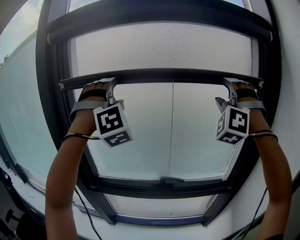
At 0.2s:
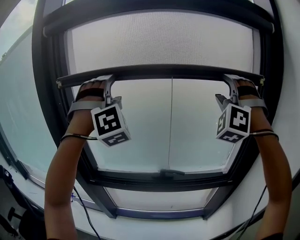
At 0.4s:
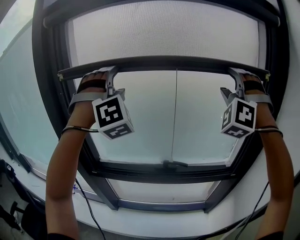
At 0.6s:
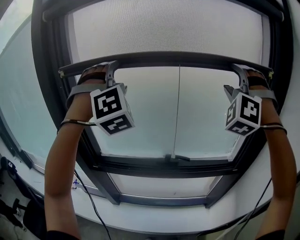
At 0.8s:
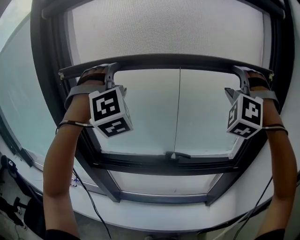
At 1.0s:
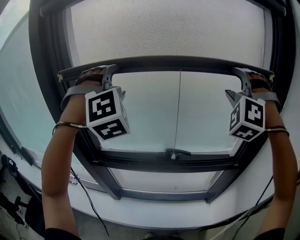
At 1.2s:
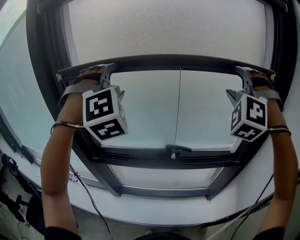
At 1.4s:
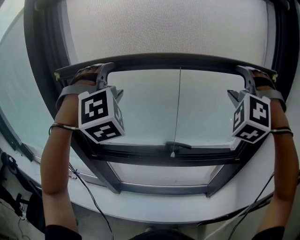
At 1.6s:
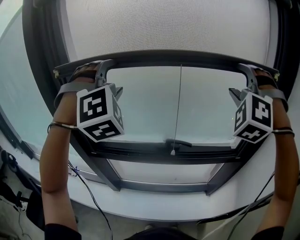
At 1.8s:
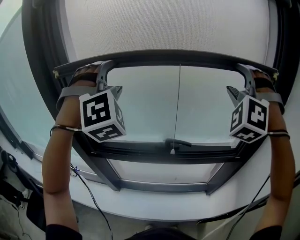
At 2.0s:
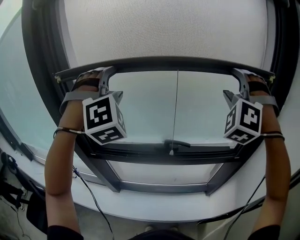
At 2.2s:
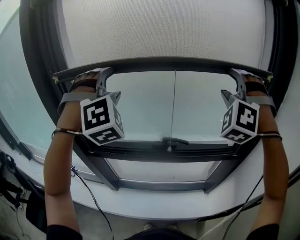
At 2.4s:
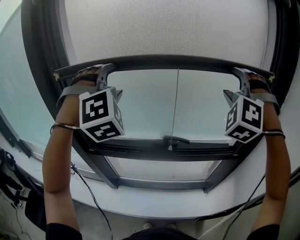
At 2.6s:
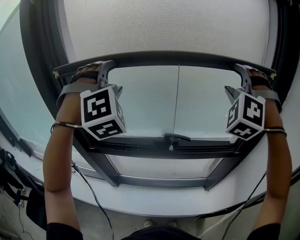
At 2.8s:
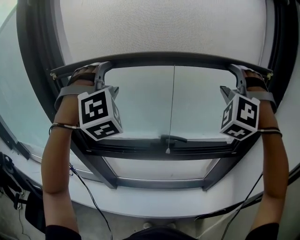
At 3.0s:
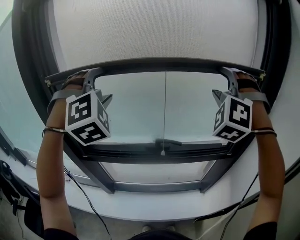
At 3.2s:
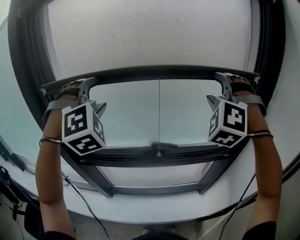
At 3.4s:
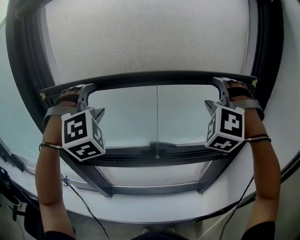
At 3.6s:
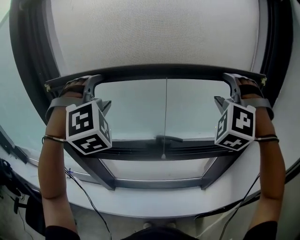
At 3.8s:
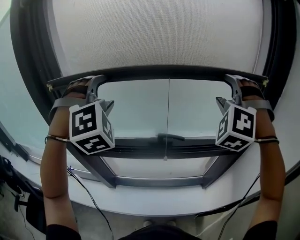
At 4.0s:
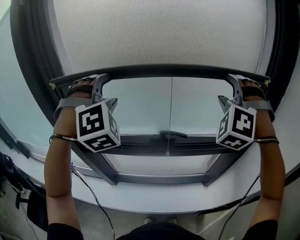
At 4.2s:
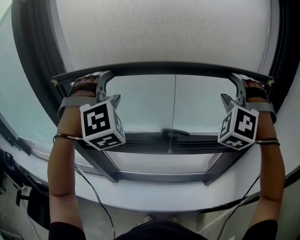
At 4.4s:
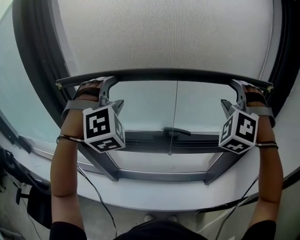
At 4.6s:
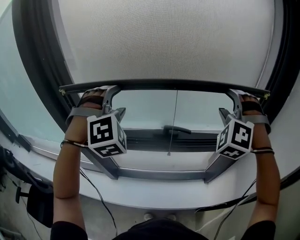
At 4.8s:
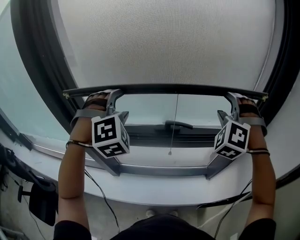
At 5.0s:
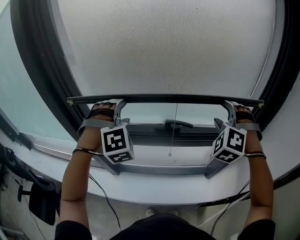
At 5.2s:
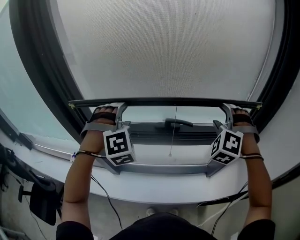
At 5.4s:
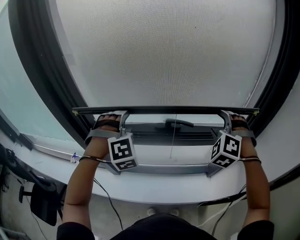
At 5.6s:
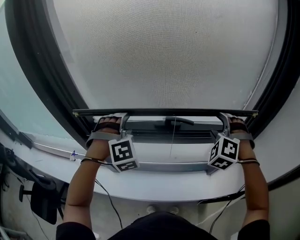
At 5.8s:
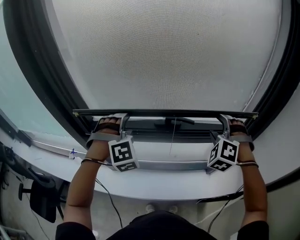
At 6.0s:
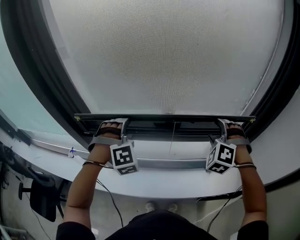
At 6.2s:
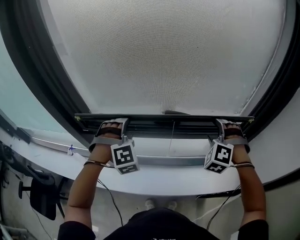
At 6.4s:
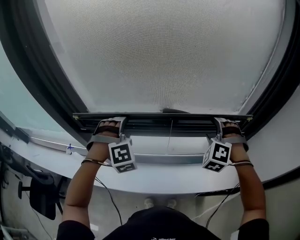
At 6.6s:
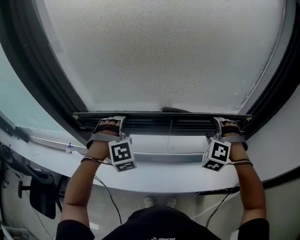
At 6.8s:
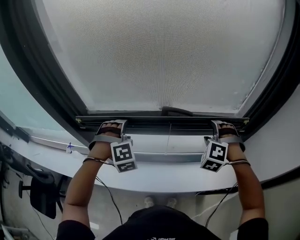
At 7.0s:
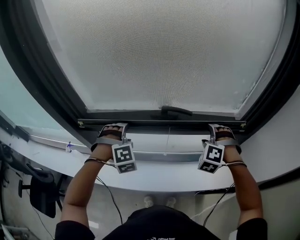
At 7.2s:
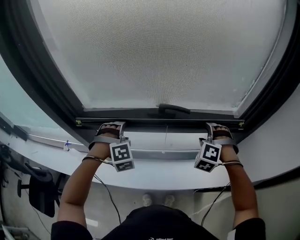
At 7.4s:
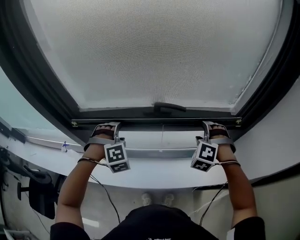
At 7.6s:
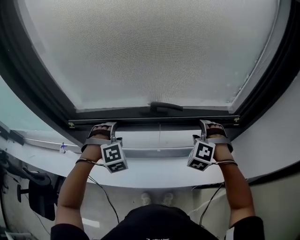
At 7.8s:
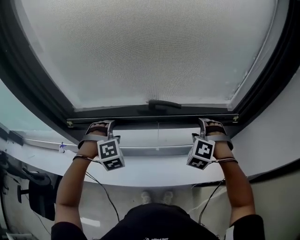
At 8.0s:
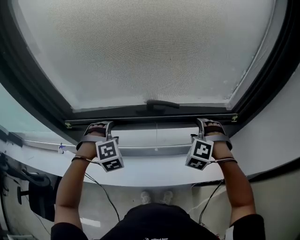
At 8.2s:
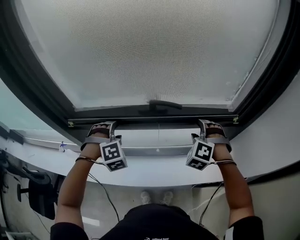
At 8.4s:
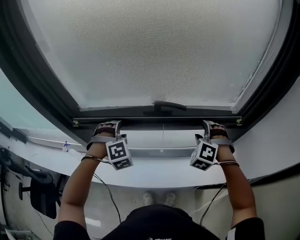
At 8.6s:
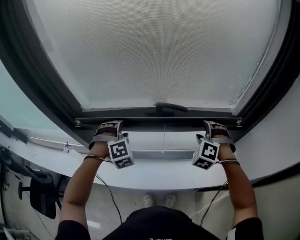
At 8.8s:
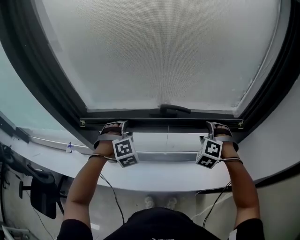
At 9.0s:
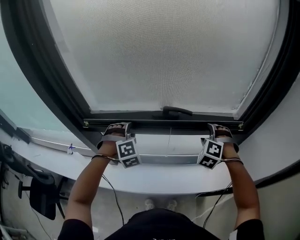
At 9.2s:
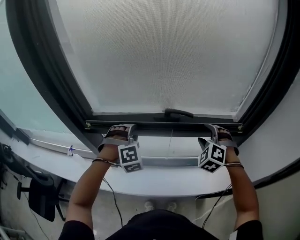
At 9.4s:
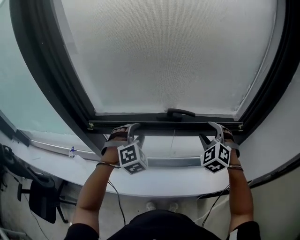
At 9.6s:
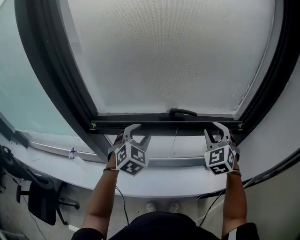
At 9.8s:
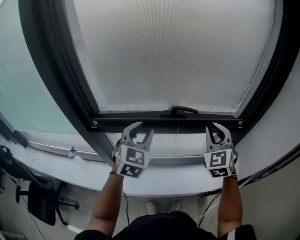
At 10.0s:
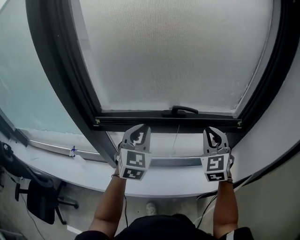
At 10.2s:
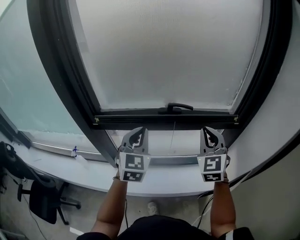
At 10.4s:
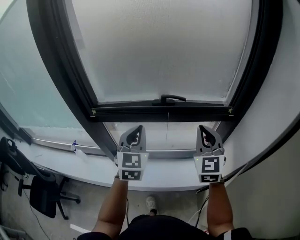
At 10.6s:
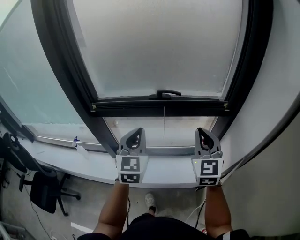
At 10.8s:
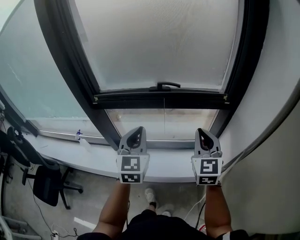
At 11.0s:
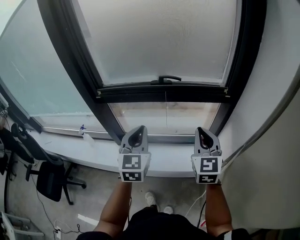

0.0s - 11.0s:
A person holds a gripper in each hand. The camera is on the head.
0.0s - 1.6s: The two grippers go approximately 10 cm downward.
1.6s - 3.2s: The grippers make only small movements.
3.2s - 4.8s: Both grippers travel together downward, approximately 15 cm.
4.8s - 6.2s: The two grippers go about 20 cm downward.
6.2s - 7.8s: Both grippers travel together downward, approximately 10 cm.
7.8s - 9.4s: Both grippers travel together upward, approximately 5 cm. The right gripper swivels some 30 degrees, while the left gripper rotates approximately 20 degrees.
9.4s - 11.0s: Both grippers move backward, roughly 25 cm. The left gripper rotates around the line of its fingers by roughly 50 degrees, counterclockwise from behind, and closes. Meanwhile the right gripper rolls clockwise, seen from behind, by about 40 degrees, and closes up.

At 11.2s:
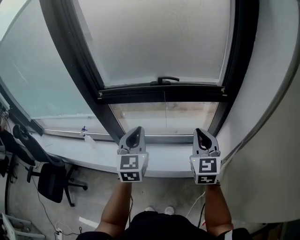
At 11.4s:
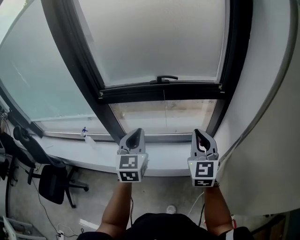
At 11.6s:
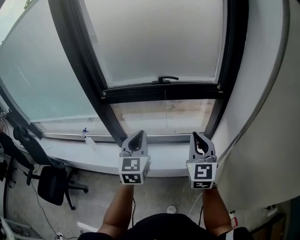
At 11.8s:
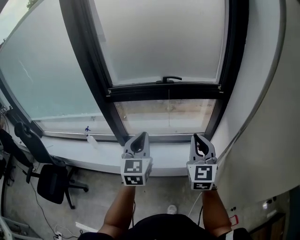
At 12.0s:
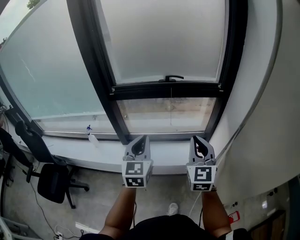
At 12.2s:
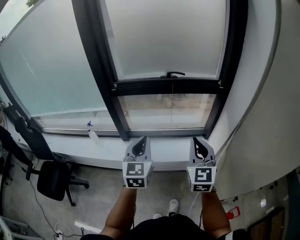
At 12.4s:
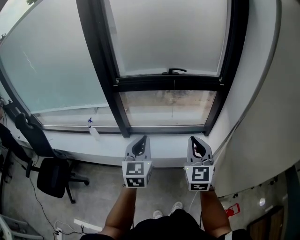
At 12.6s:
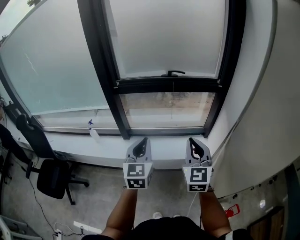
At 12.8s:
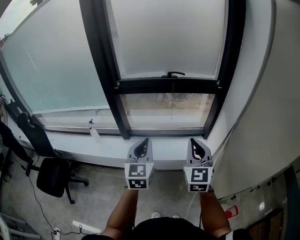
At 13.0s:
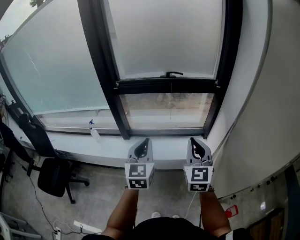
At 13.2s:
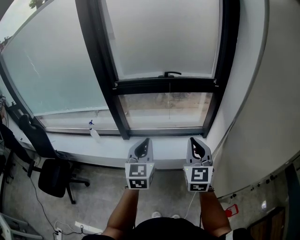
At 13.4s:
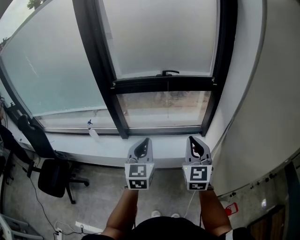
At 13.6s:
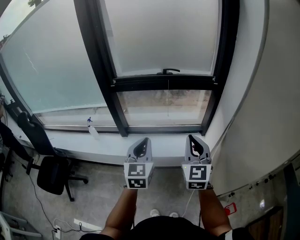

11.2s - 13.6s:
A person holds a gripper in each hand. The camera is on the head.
11.2s - 12.4s: The right gripper shifts roughly 20 cm backward and to the left, while the left gripper is displaced backward by about 20 cm.
12.4s - 13.6s: The left gripper changes place by approximately 5 cm.

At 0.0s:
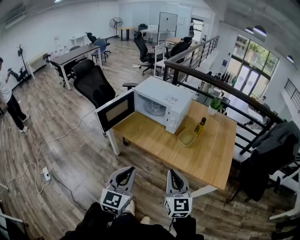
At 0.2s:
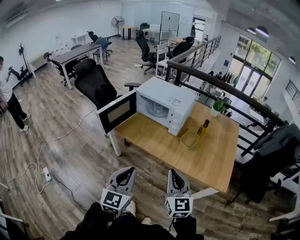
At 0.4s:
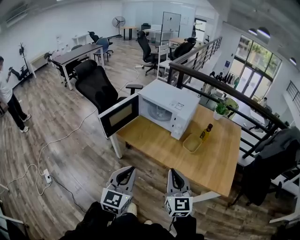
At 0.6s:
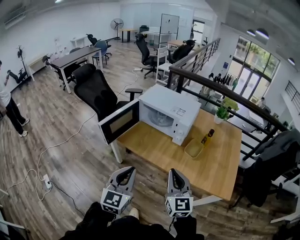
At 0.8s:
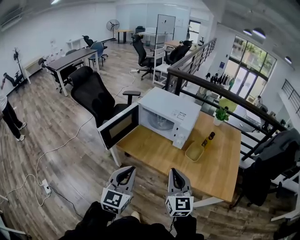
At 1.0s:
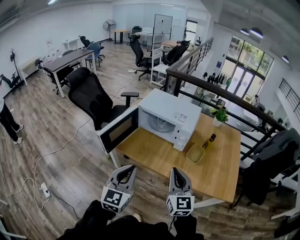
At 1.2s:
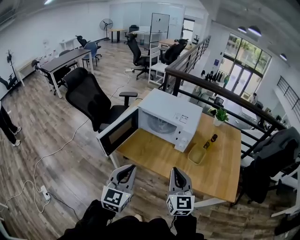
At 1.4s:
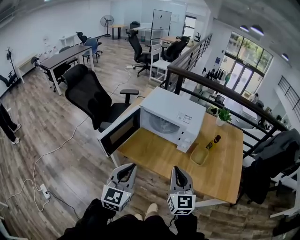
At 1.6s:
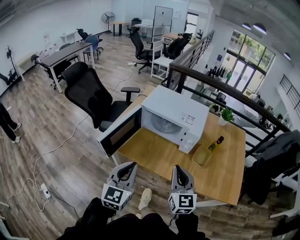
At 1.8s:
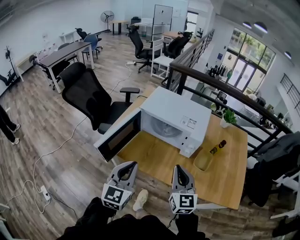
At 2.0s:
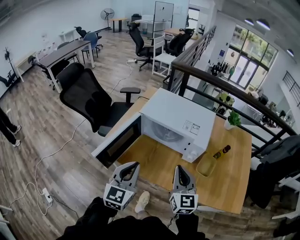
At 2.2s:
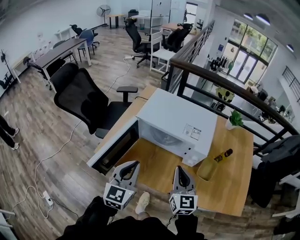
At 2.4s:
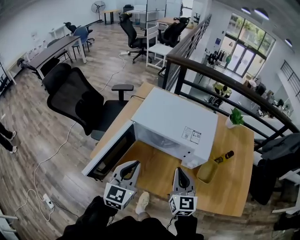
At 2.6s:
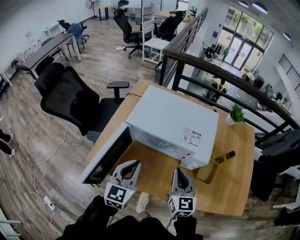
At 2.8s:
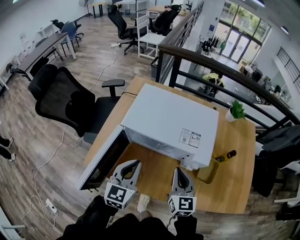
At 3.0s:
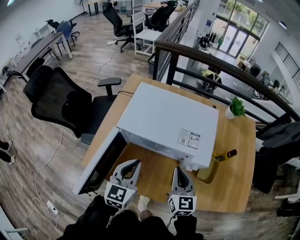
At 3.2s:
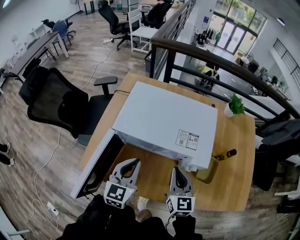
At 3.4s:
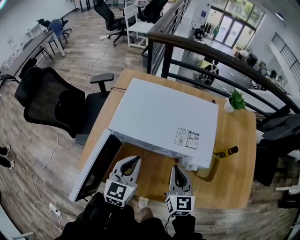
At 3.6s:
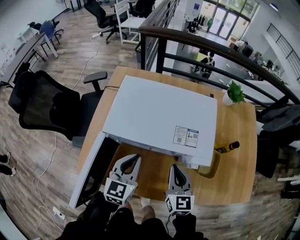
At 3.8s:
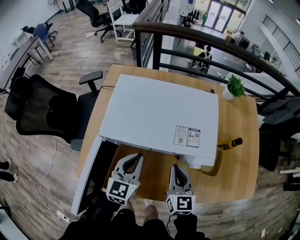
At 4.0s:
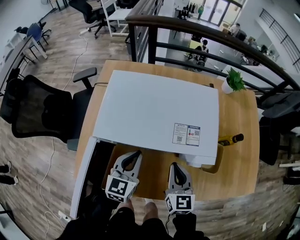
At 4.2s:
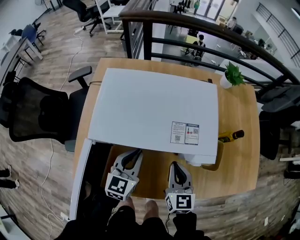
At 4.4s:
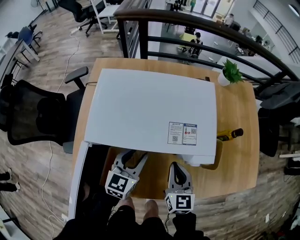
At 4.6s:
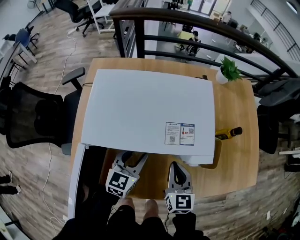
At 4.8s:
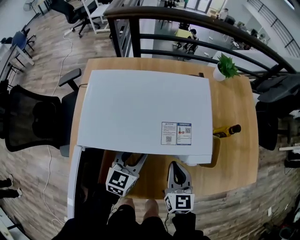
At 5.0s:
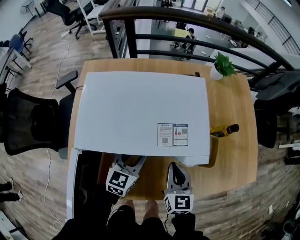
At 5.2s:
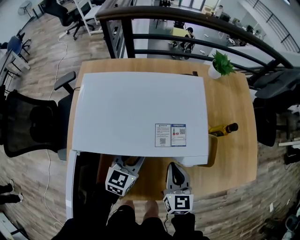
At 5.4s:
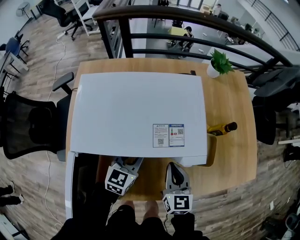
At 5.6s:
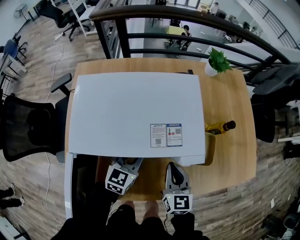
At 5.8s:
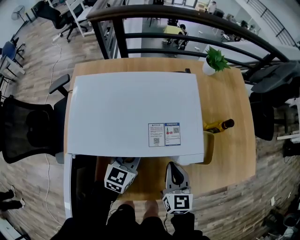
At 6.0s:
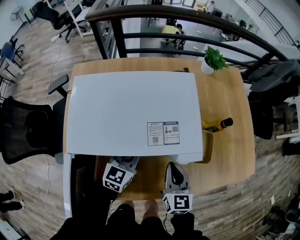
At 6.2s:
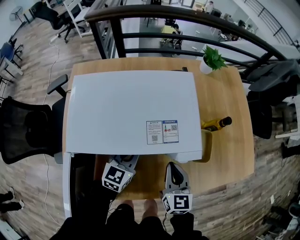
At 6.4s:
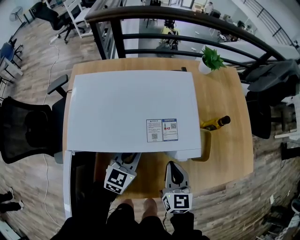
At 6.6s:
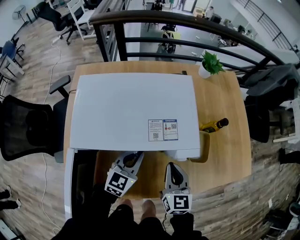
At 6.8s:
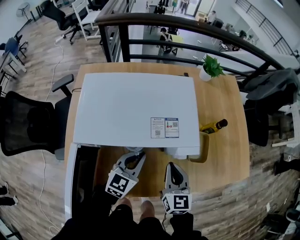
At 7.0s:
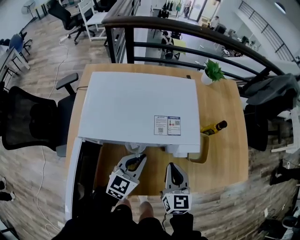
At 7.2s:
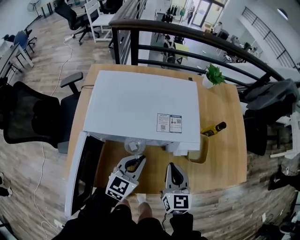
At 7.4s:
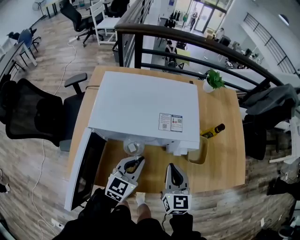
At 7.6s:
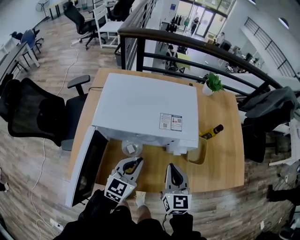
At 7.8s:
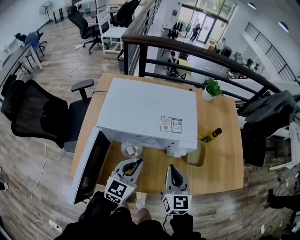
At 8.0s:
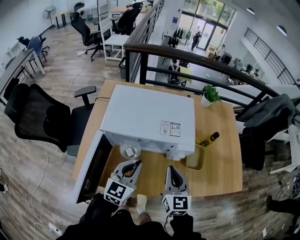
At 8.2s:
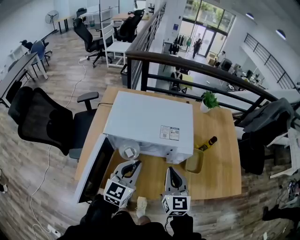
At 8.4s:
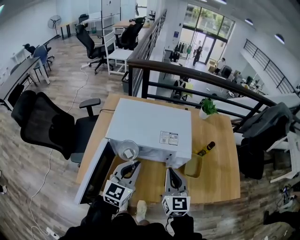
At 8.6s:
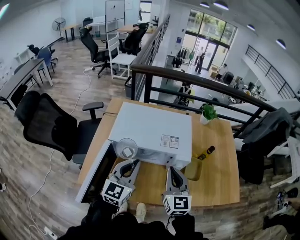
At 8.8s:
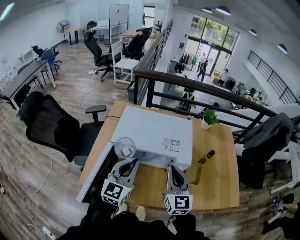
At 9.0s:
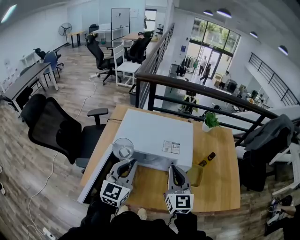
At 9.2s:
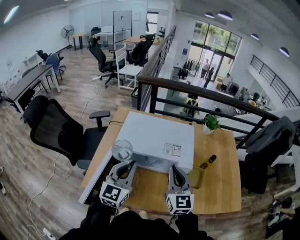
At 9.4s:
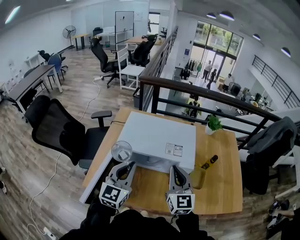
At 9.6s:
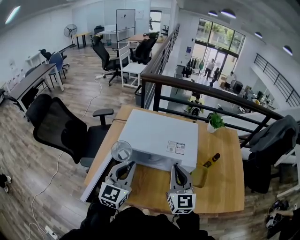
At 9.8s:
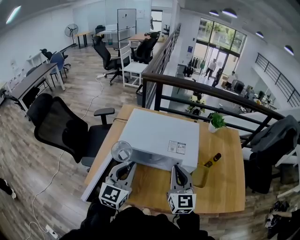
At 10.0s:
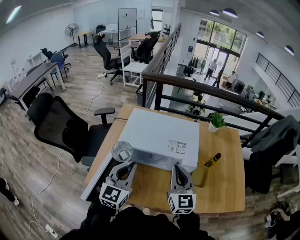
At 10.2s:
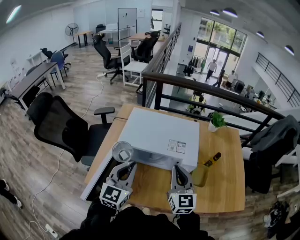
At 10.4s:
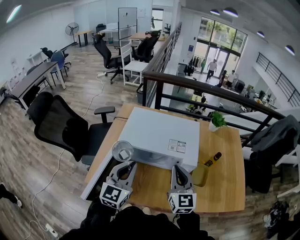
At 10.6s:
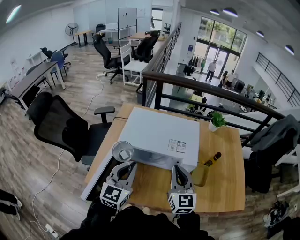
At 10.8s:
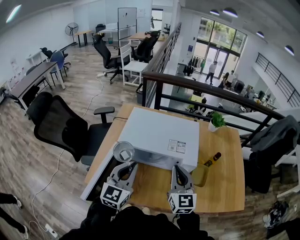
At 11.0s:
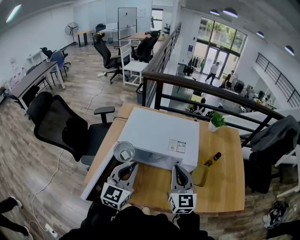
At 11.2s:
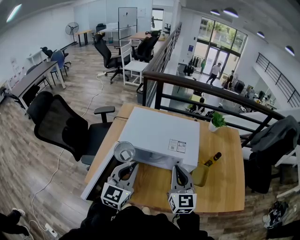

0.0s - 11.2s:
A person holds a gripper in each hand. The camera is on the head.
0.0s - 1.6s: The two grippers go approximately 30 cm forward and to the left.
1.6s - 3.2s: The right gripper heads forward and downward, covering approximately 30 cm; the left gripper moves forward, about 35 cm.
3.2s - 4.8s: The right gripper is displaced downward by approximately 10 cm. Meanwhile the left gripper goes about 20 cm downward, forward and to the right, turns by about 20 degrees, and opens up.
4.8s - 6.4s: The left gripper closes its fingers.
6.4s - 8.0s: The right gripper goes some 15 cm upward and backward. The left gripper shifts about 20 cm backward and upward.
8.0s - 9.6s: The left gripper travels upward and to the left by about 15 cm; the right gripper is displaced upward by roughly 10 cm.
9.6s - 11.2s: There are only small adjustments of the grippers.
